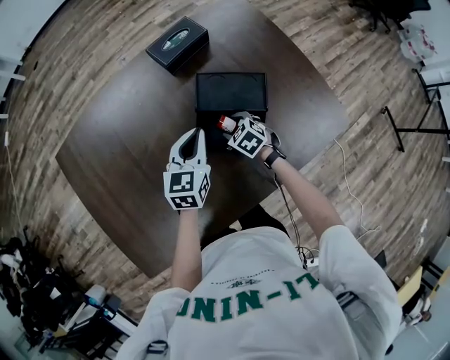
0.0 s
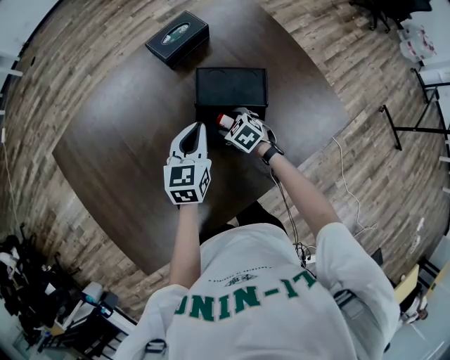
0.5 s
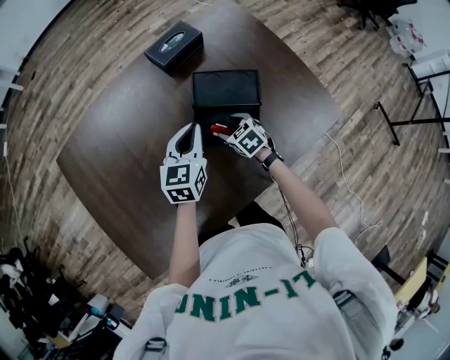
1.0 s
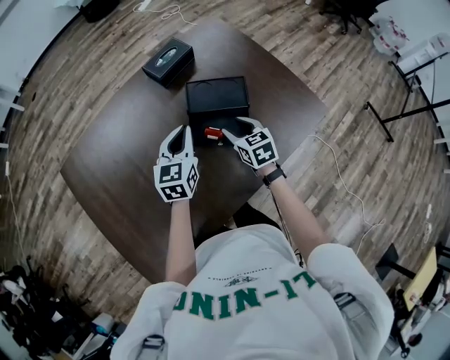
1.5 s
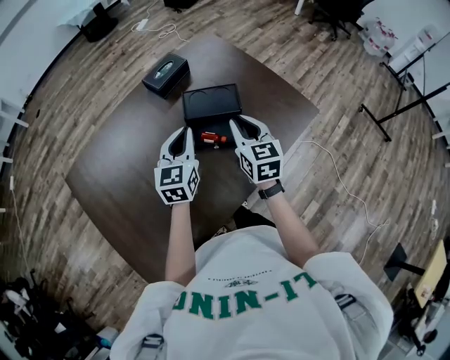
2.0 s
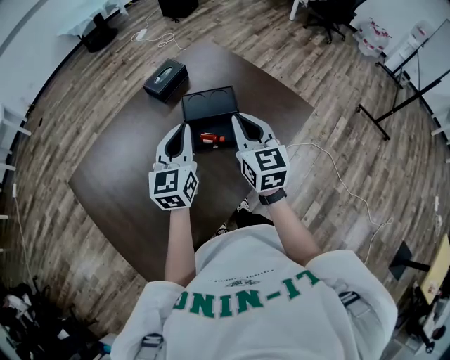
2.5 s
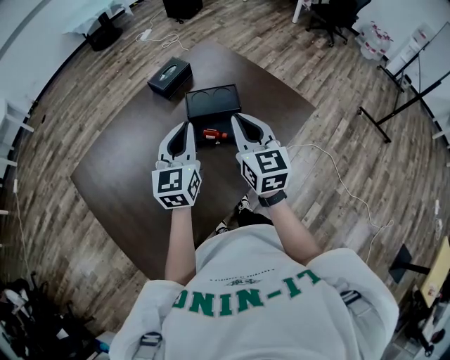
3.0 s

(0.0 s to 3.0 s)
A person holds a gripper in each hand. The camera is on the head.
0.0 s - 1.5 s: The left gripper travels upward by roughly 5 cm. The right gripper goes roughly 15 cm upward and backward, and swivels about 40 degrees.
1.5 s - 3.0 s: The right gripper heads upward and backward, covering roughly 25 cm, swivels roughly 30 degrees, and closes its fingers. Meanwhile the left gripper shifts about 15 cm upward and backward.

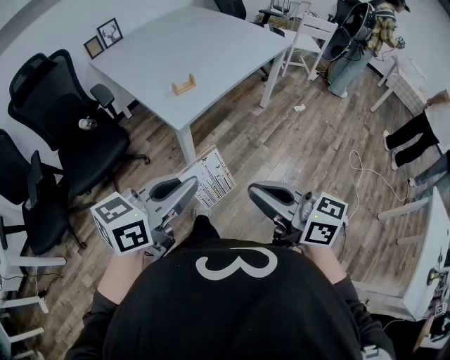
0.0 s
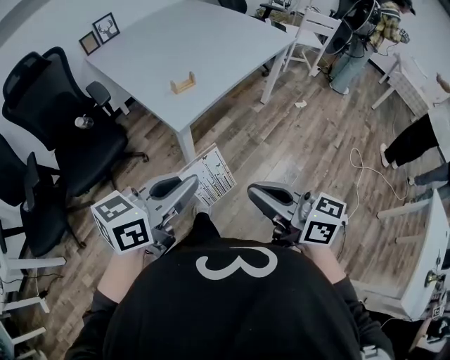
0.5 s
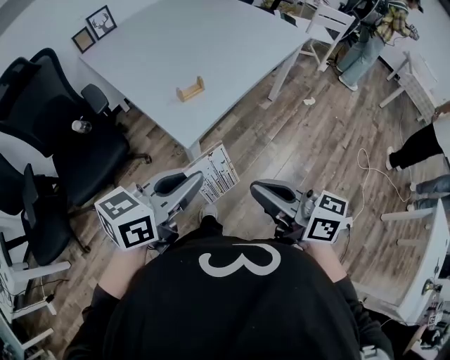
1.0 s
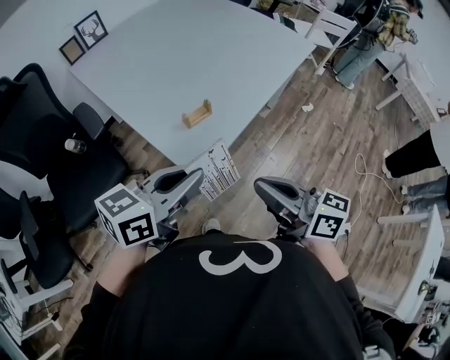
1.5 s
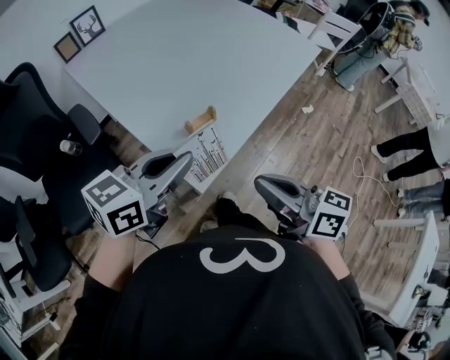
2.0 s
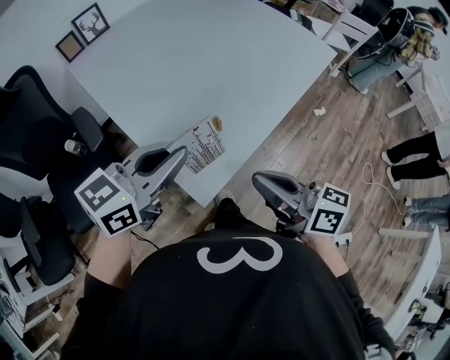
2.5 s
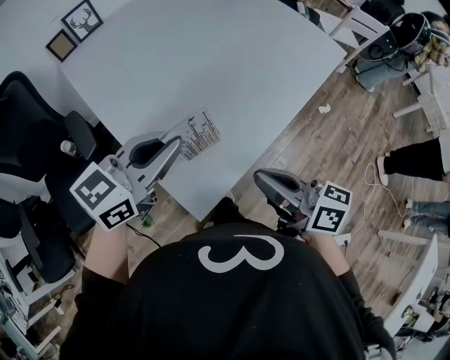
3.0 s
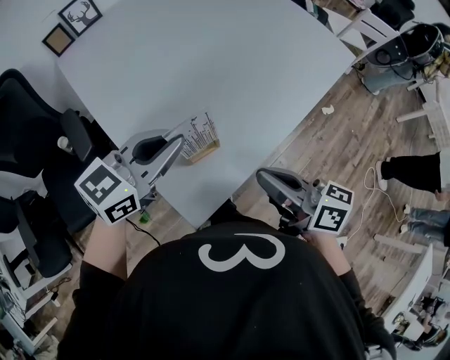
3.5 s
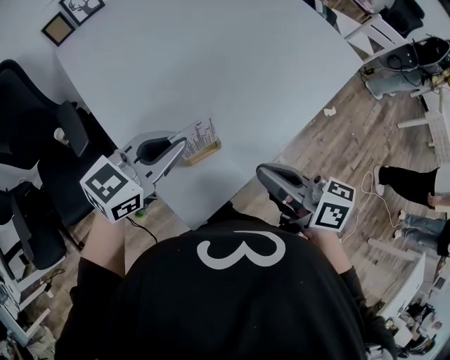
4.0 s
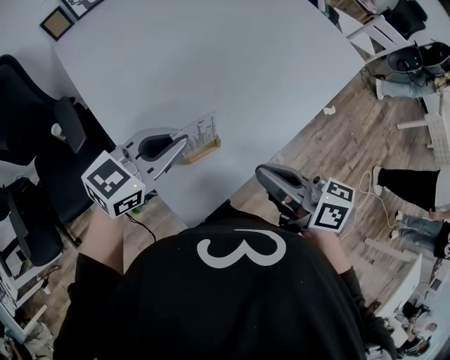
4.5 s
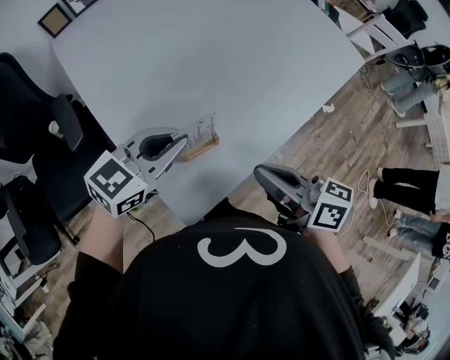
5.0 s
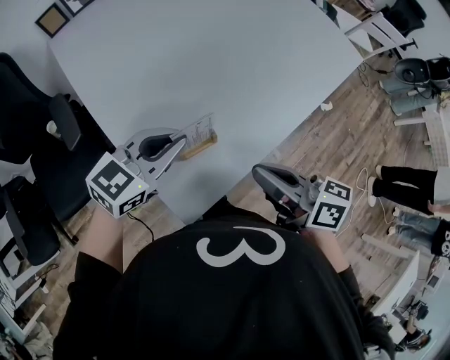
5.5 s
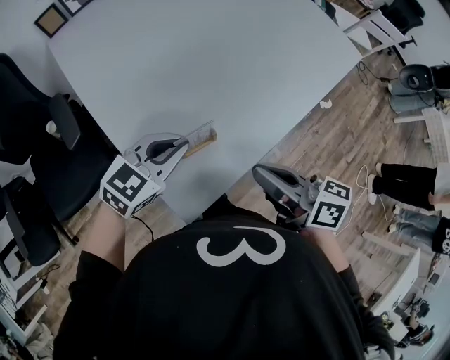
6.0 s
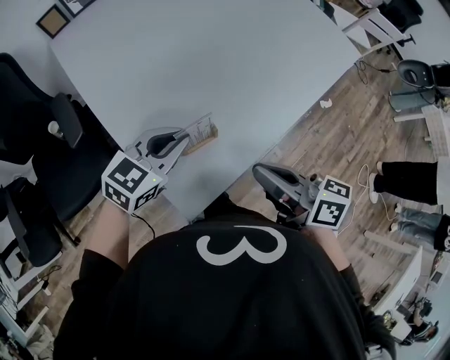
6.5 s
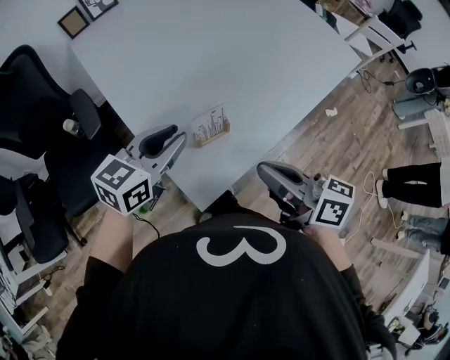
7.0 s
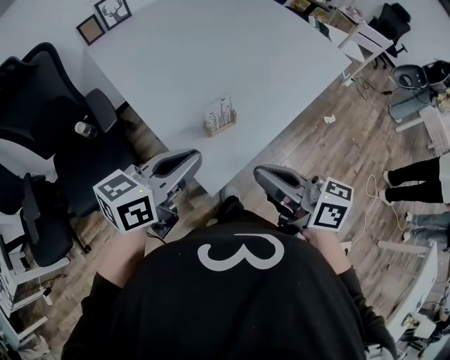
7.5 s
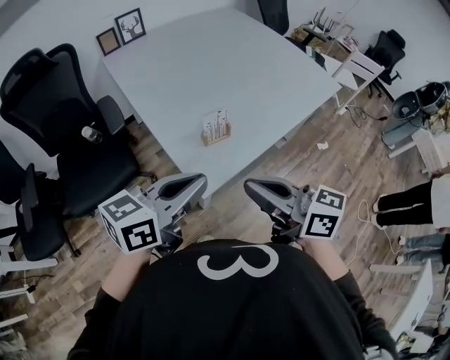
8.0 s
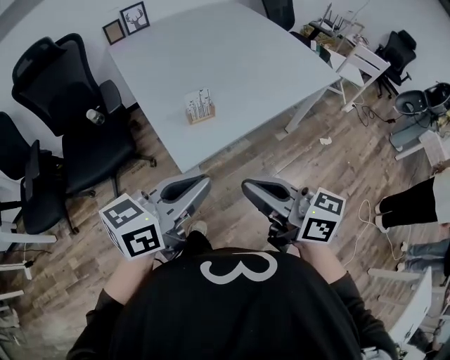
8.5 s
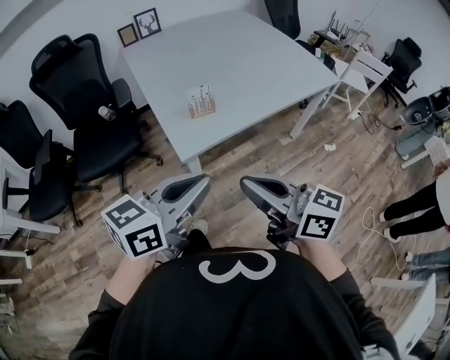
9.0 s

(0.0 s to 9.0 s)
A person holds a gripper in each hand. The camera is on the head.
0.0 s - 2.0 s: Both grippers travel together forward, roughly 35 cm.
2.0 s - 4.5 s: The left gripper shifts about 20 cm forward and downward. Meanwhile the right gripper moves forward, about 20 cm.
4.5 s - 7.0 s: The left gripper ends up about 5 cm from where it was. The right gripper is displaced backward by some 5 cm.
7.0 s - 9.0 s: The two grippers go about 30 cm backward. The right gripper swivels some 20 degrees.

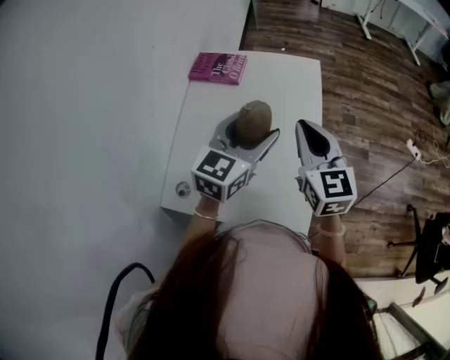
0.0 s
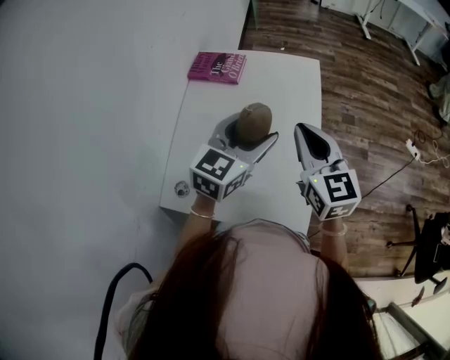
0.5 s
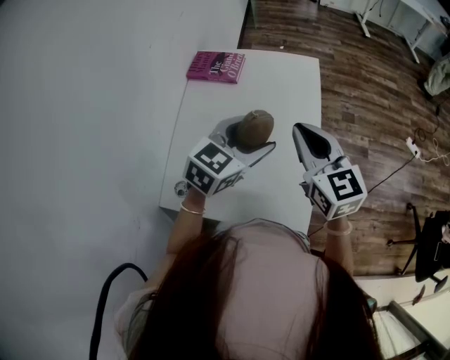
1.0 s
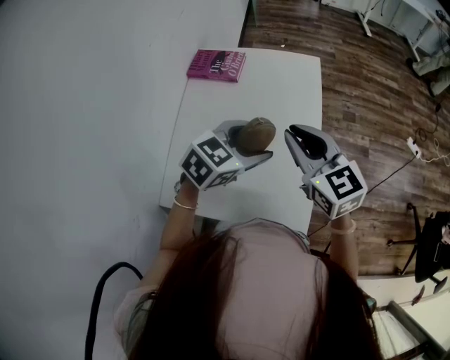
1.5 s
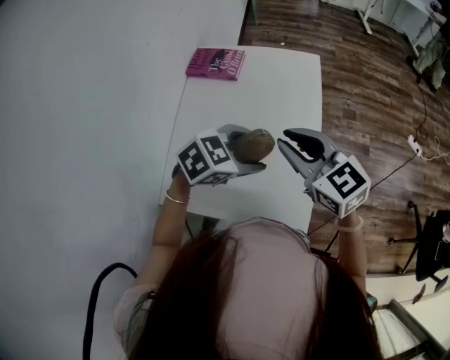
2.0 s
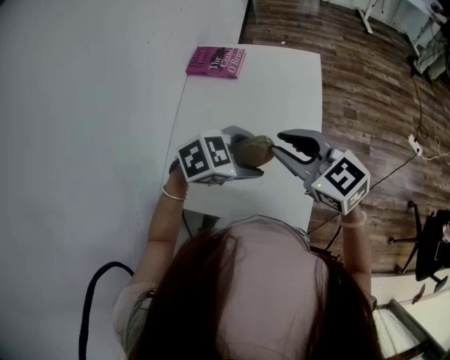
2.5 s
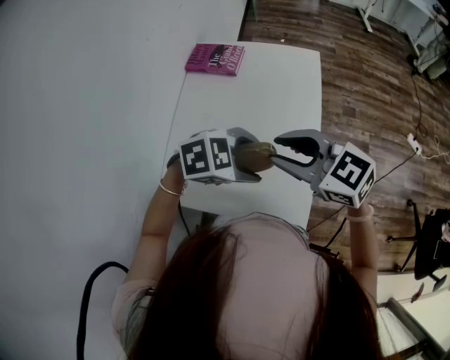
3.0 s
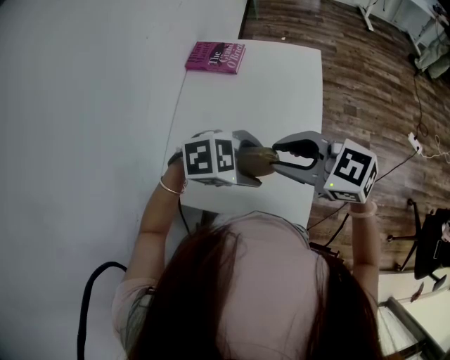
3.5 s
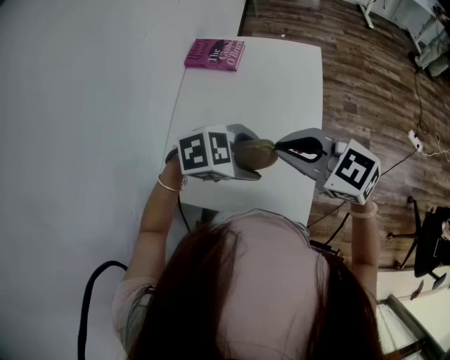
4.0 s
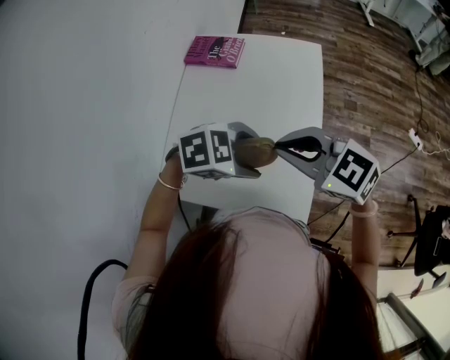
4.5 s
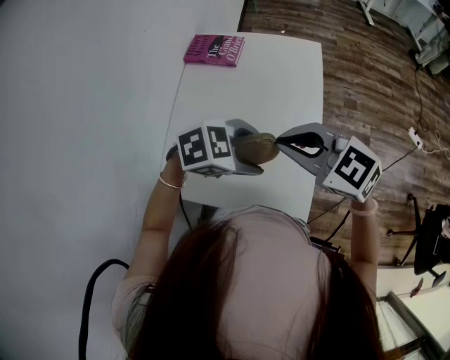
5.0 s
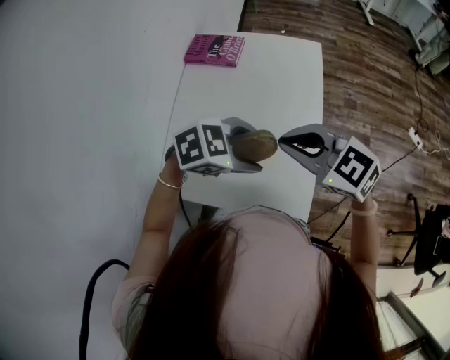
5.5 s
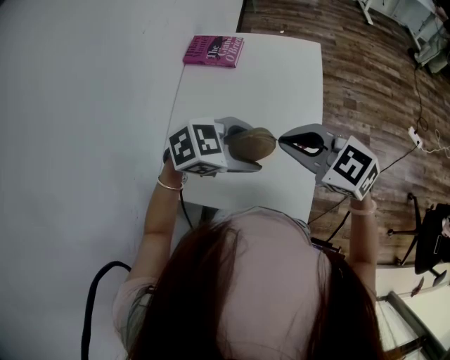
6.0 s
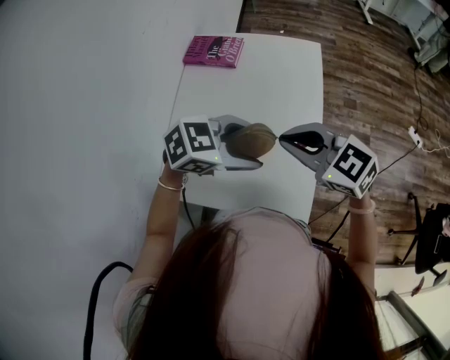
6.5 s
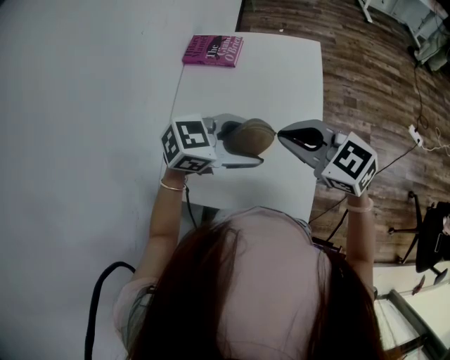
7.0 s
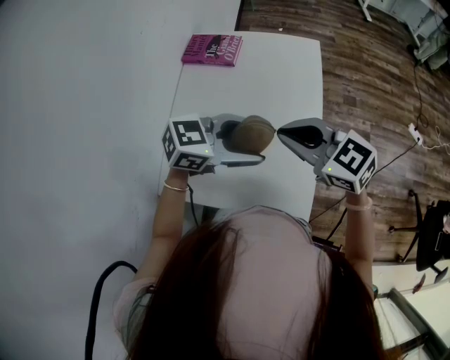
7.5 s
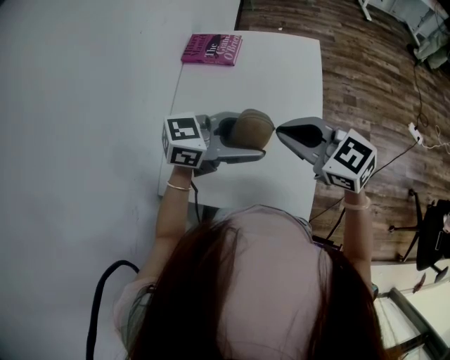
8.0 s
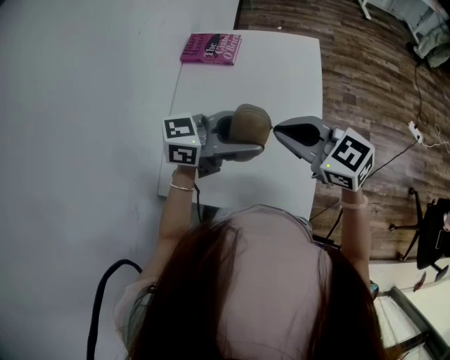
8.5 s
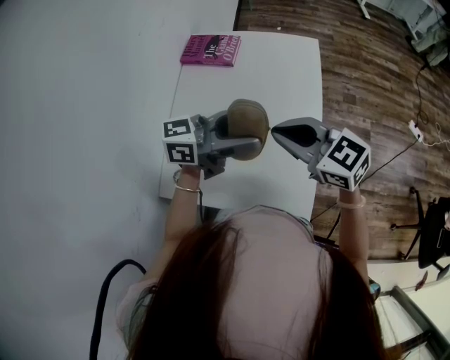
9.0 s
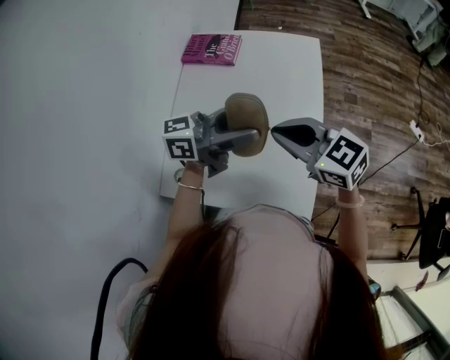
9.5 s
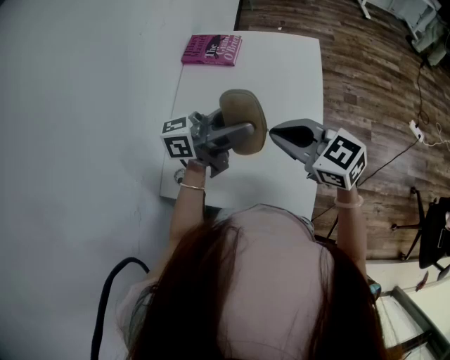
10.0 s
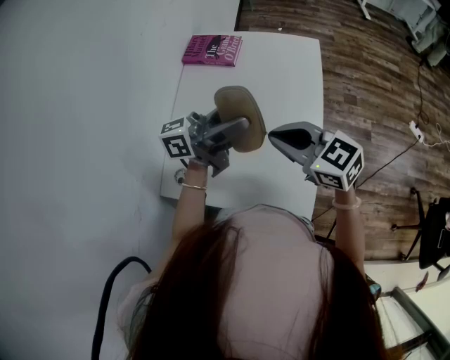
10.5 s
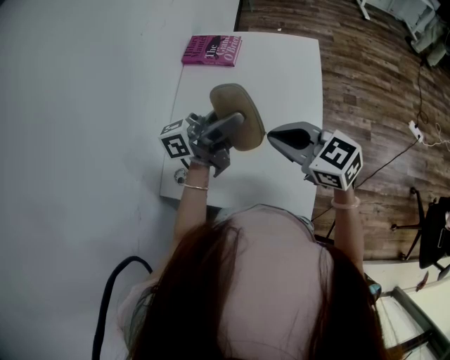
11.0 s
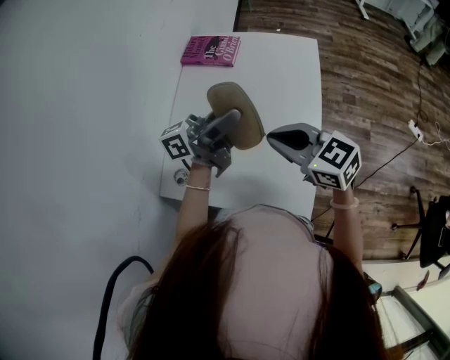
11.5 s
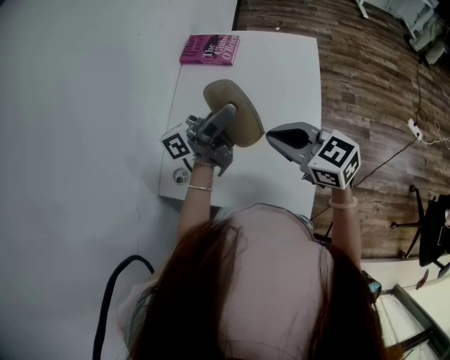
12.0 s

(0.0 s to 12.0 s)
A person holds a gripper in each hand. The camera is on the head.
0.0 s - 2.0 s: The right gripper shifts by roughly 5 cm, and swivels about 30 degrees; the left gripper heads downward and backward, covering roughly 10 cm, and tilts its fingers some 30 degrees downward.
2.0 s - 4.0 s: The right gripper changes its angle by roughly 20 degrees.
4.0 s - 6.0 s: The grippers move only a little.
6.0 s - 8.0 s: The left gripper changes its angle by about 30 degrees.
8.0 s - 10.0 s: The left gripper ends up approximately 5 cm from where it was, and turns by about 30 degrees.
10.0 s - 12.0 s: The left gripper swivels approximately 30 degrees.

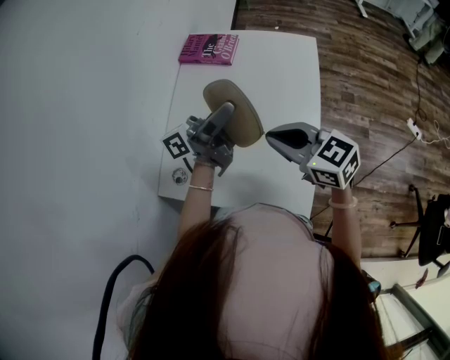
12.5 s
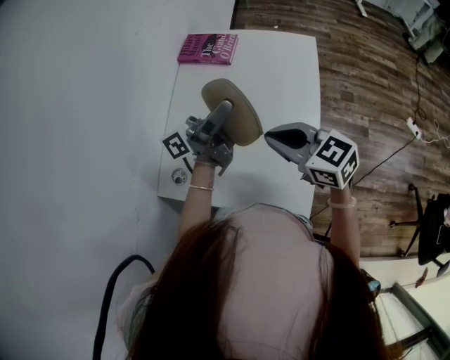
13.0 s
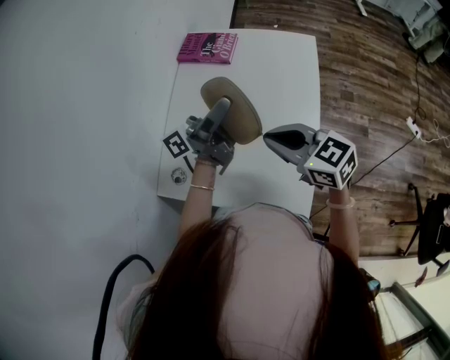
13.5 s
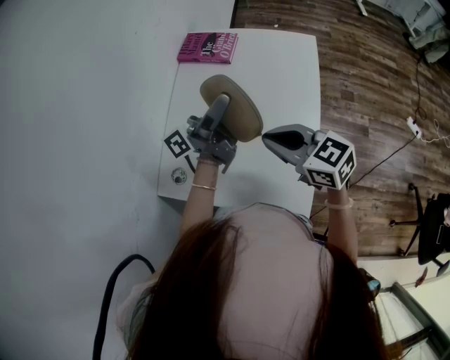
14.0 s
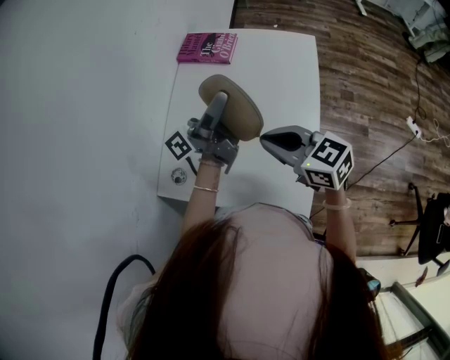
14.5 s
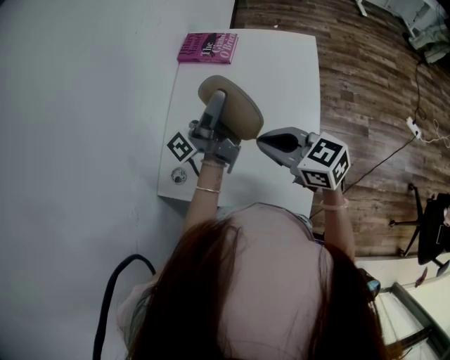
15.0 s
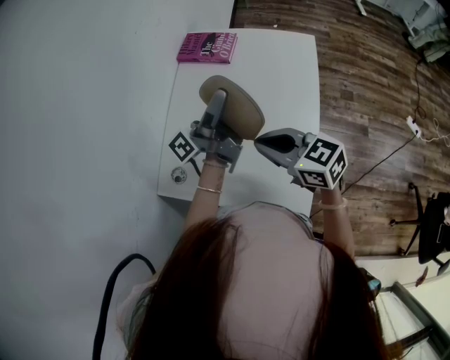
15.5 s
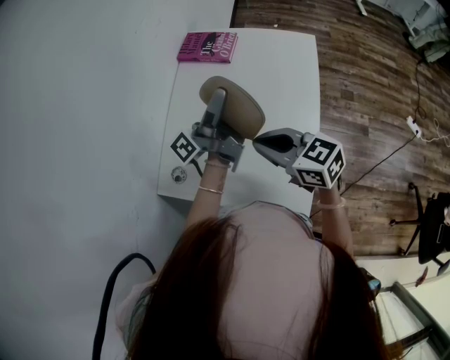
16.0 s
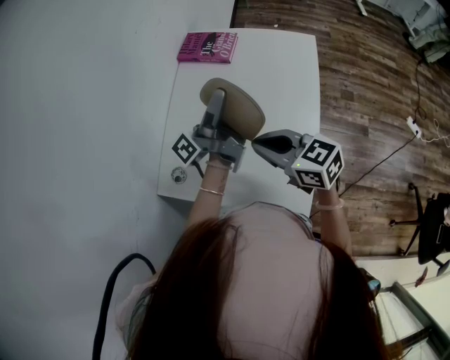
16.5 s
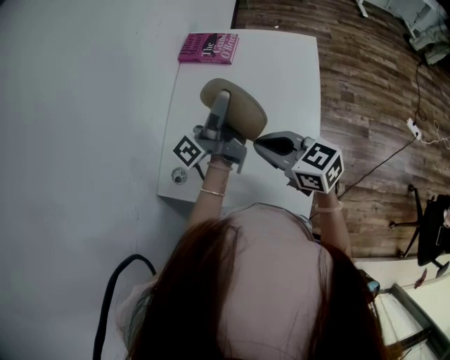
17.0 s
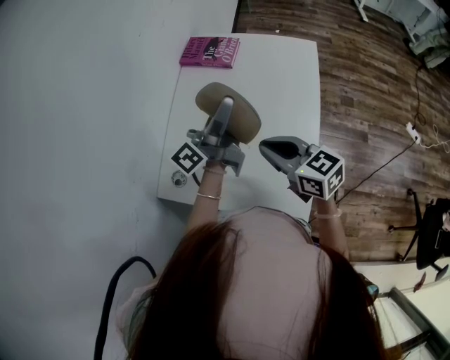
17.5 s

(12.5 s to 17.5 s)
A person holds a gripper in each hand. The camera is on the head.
12.5 s - 15.0 s: There are only small adjustments of the grippers.
15.0 s - 17.5 s: The grippers make only small movements.
